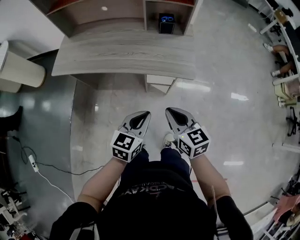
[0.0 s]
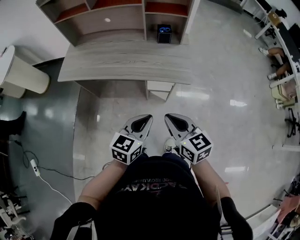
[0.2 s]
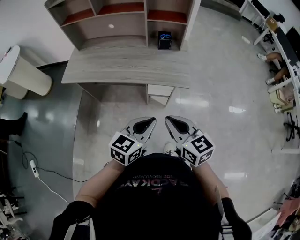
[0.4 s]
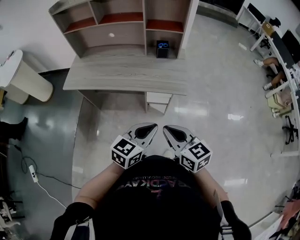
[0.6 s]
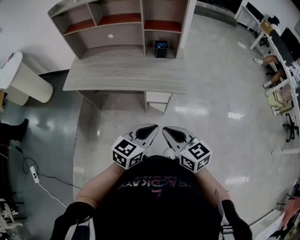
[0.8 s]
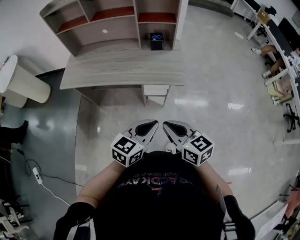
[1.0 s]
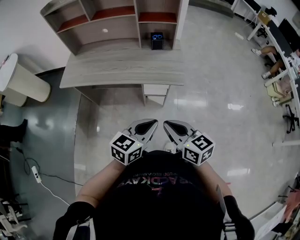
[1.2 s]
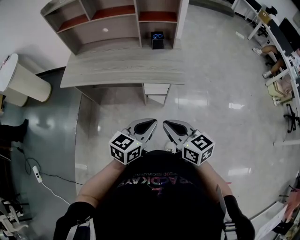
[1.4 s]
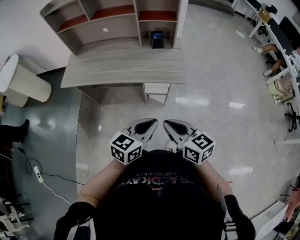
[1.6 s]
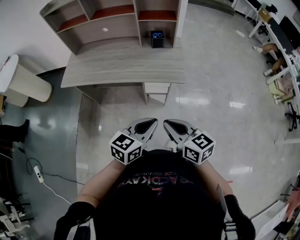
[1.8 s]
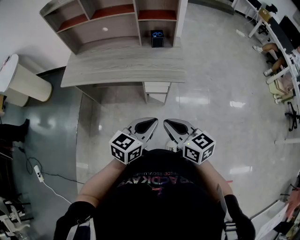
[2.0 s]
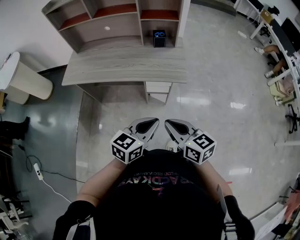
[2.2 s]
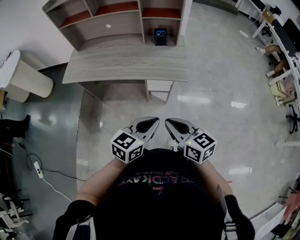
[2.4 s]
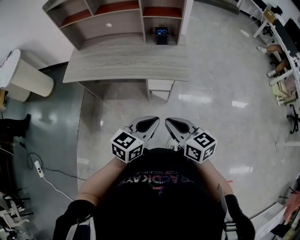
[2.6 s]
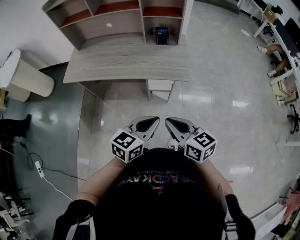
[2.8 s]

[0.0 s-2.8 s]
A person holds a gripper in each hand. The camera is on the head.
0.0 to 1.4 s: The left gripper moves upward, roughly 5 cm. Meanwhile the right gripper moves upward and backward, approximately 10 cm.
1.4 to 2.8 s: Both grippers stay put.

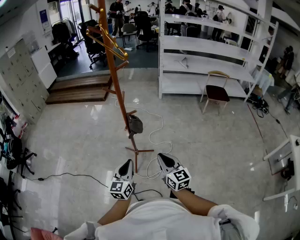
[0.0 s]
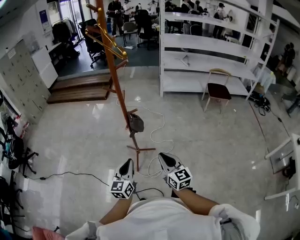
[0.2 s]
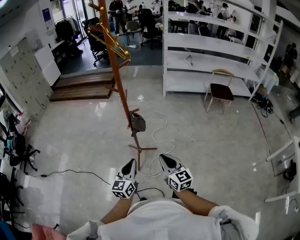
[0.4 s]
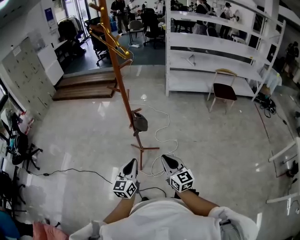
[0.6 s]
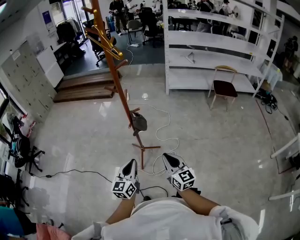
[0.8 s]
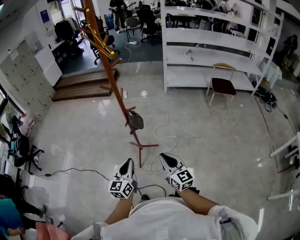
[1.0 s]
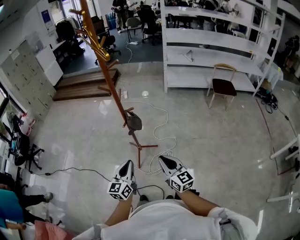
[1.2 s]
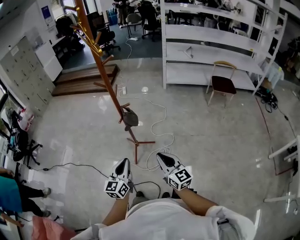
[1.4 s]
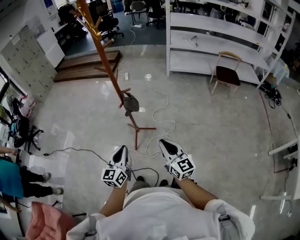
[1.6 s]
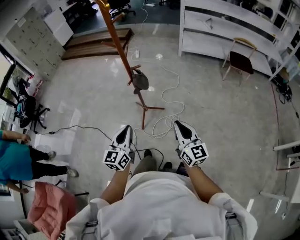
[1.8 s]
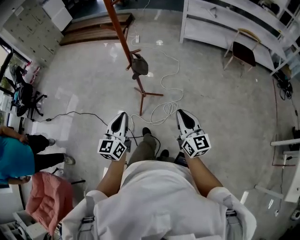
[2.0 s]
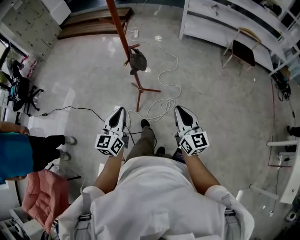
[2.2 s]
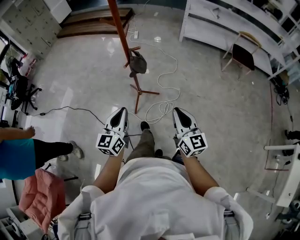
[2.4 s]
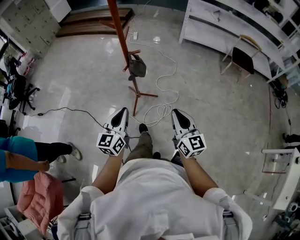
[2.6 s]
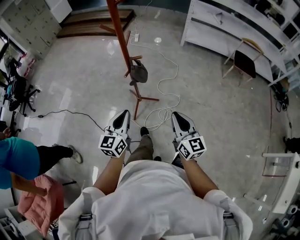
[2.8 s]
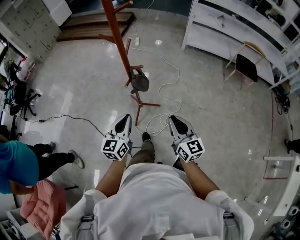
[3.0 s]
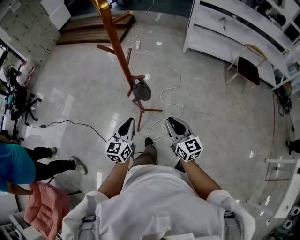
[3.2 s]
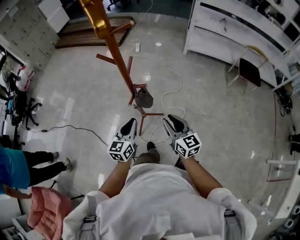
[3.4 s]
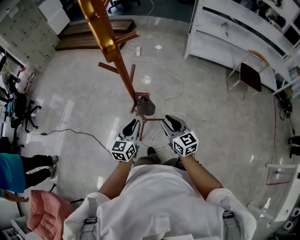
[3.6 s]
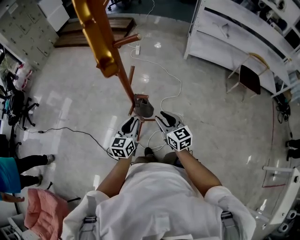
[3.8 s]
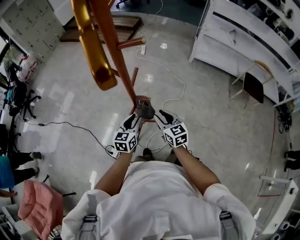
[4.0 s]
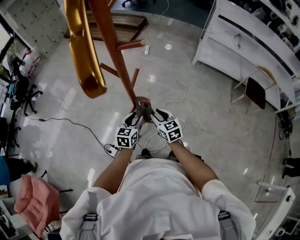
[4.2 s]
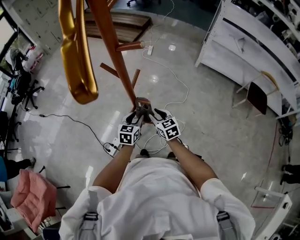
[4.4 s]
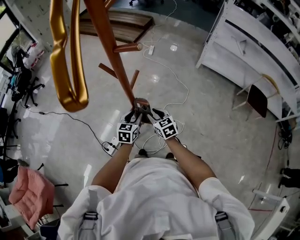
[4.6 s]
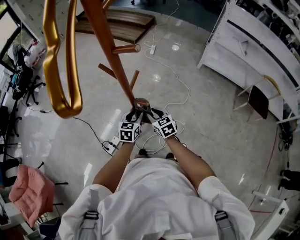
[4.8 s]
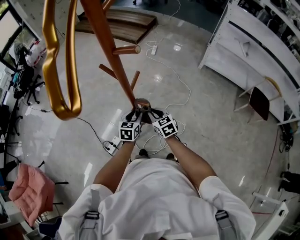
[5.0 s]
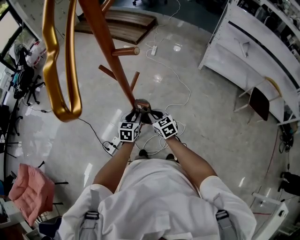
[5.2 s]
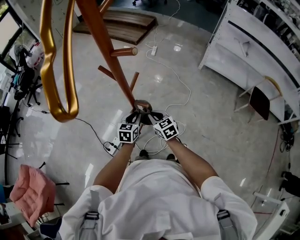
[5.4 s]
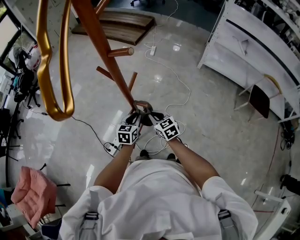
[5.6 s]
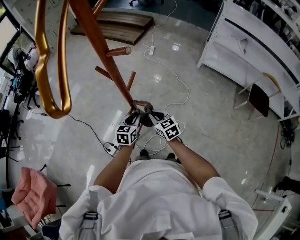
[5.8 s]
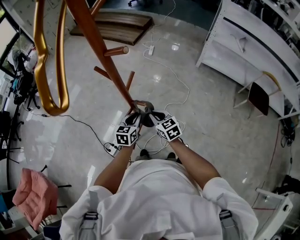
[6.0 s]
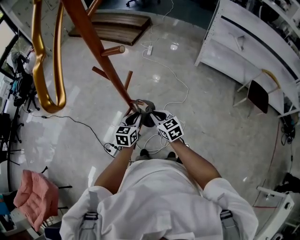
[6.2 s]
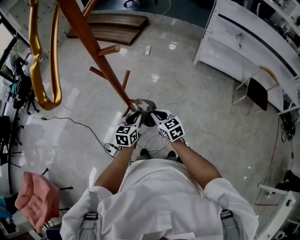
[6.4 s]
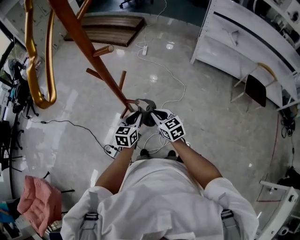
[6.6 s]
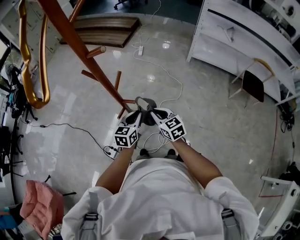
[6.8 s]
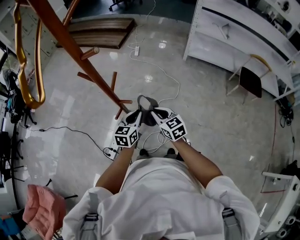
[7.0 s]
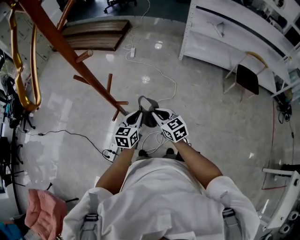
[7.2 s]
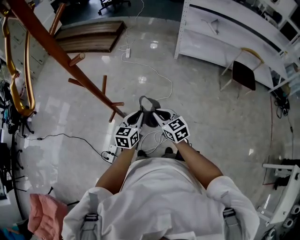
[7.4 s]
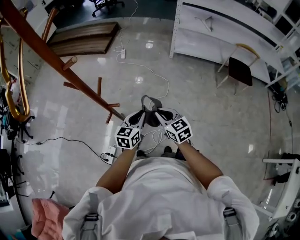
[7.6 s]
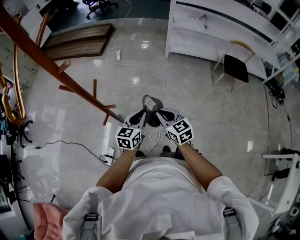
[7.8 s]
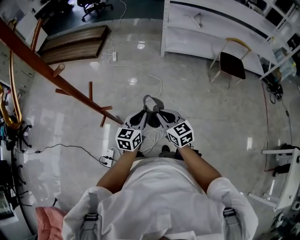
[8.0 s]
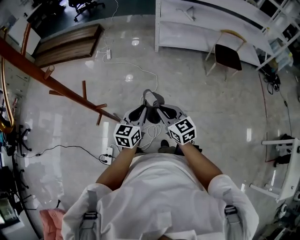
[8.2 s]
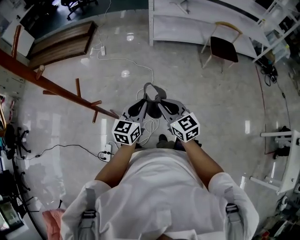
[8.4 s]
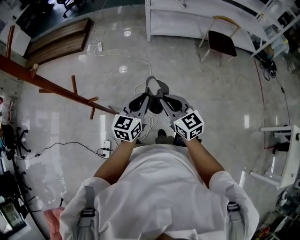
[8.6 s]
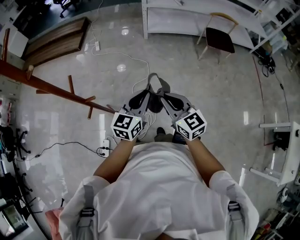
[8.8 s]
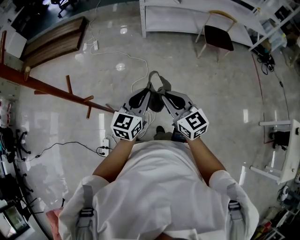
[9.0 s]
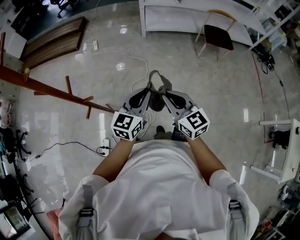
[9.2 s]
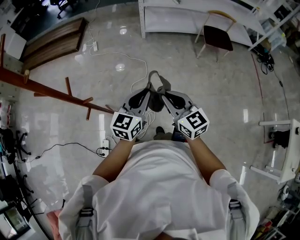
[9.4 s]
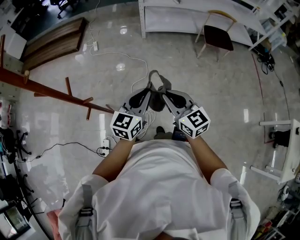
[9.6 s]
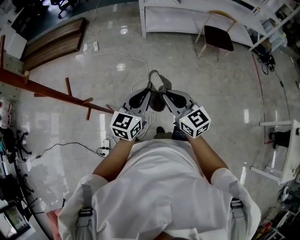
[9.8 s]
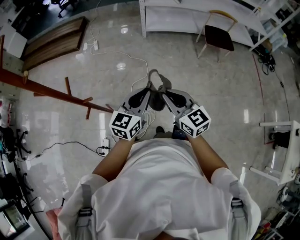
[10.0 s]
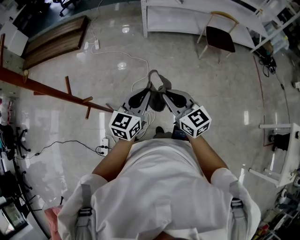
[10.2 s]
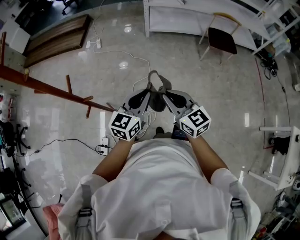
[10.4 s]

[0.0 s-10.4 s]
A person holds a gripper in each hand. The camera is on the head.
0.0 to 1.4 s: Both grippers travel together to the right, about 5 cm.
1.4 to 3.0 s: Both grippers move forward, about 15 cm.
3.0 to 4.4 s: The two grippers go roughly 30 cm forward and downward. The right gripper rotates roughly 30 degrees, and opens its fingers; the left gripper rotates about 20 degrees, and opens its fingers.
4.4 to 6.0 s: The right gripper closes up.
6.0 to 7.4 s: The left gripper travels to the right and upward by some 15 cm. Meanwhile the right gripper is displaced to the right, upward and backward by roughly 15 cm.
7.4 to 9.0 s: Both grippers travel together to the right and upward, some 20 cm. The right gripper swivels some 20 degrees, while the left gripper changes its angle by some 20 degrees.
9.0 to 10.4 s: The grippers stay close to where they were, moving slightly.

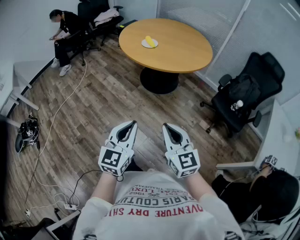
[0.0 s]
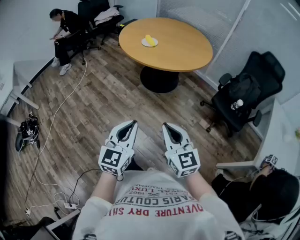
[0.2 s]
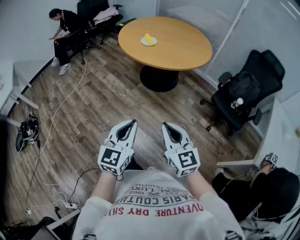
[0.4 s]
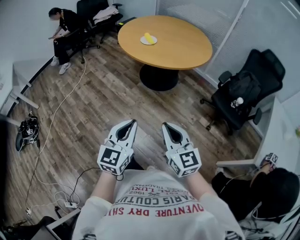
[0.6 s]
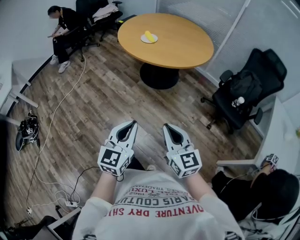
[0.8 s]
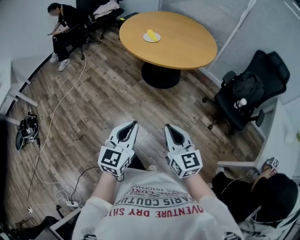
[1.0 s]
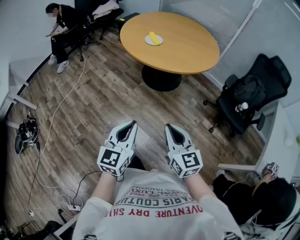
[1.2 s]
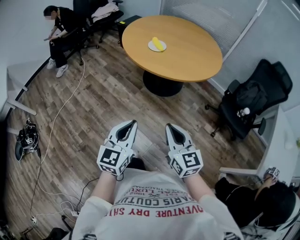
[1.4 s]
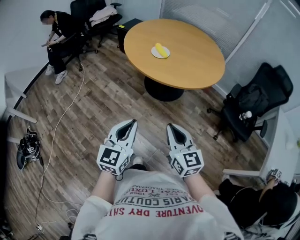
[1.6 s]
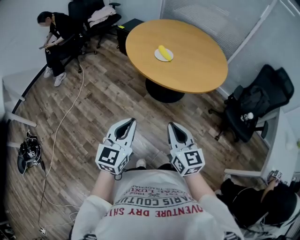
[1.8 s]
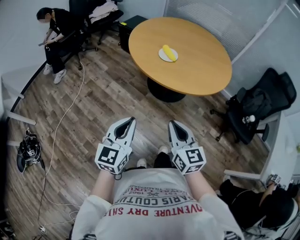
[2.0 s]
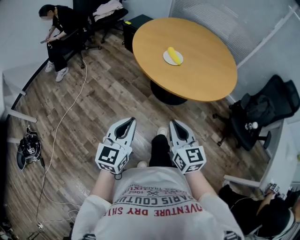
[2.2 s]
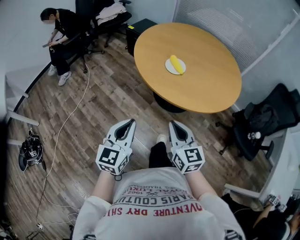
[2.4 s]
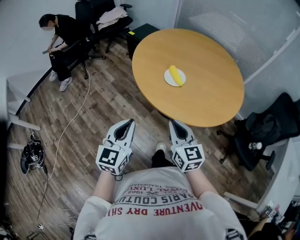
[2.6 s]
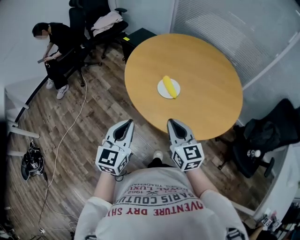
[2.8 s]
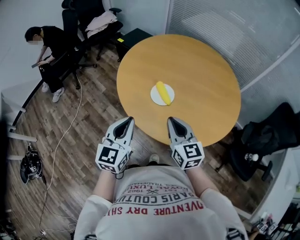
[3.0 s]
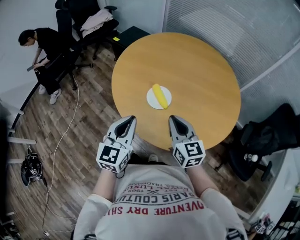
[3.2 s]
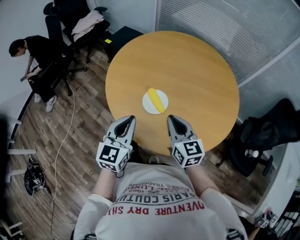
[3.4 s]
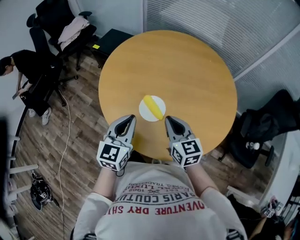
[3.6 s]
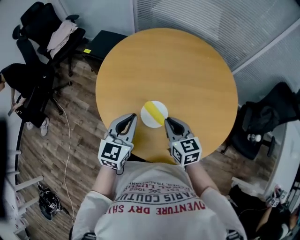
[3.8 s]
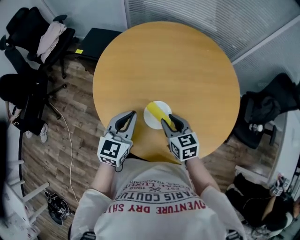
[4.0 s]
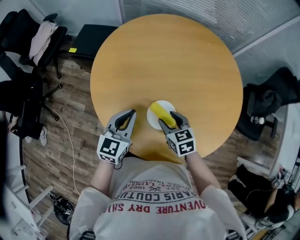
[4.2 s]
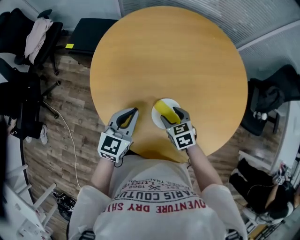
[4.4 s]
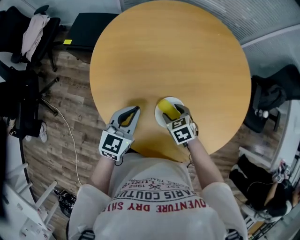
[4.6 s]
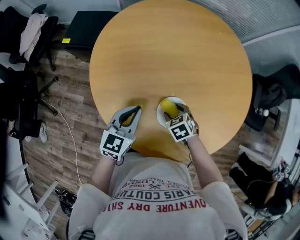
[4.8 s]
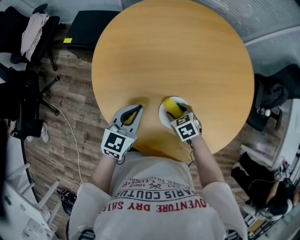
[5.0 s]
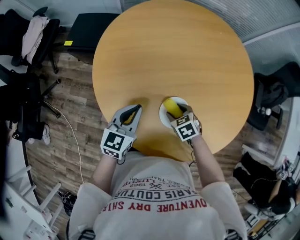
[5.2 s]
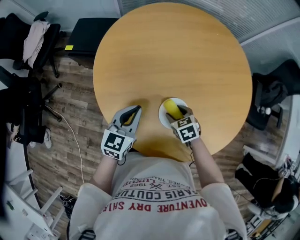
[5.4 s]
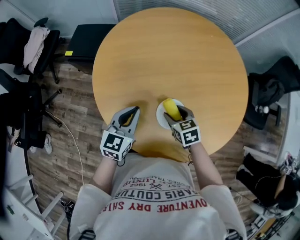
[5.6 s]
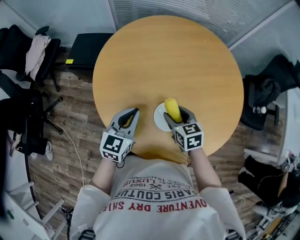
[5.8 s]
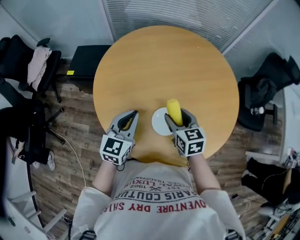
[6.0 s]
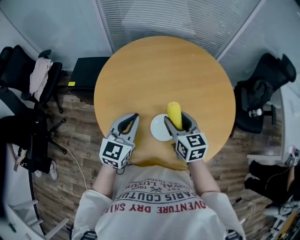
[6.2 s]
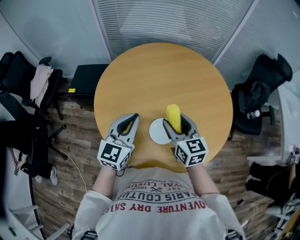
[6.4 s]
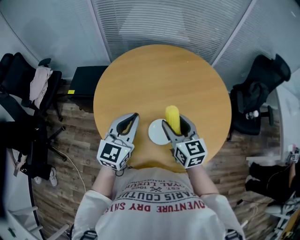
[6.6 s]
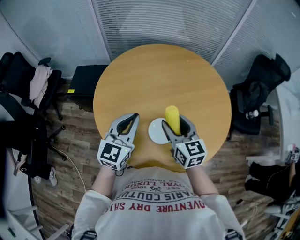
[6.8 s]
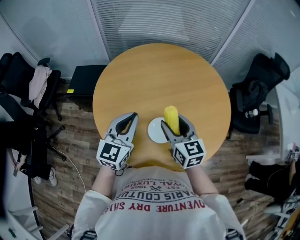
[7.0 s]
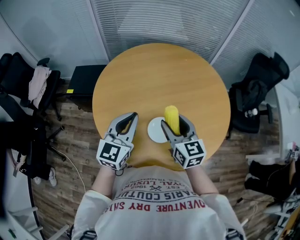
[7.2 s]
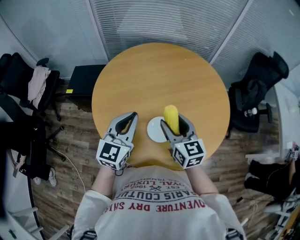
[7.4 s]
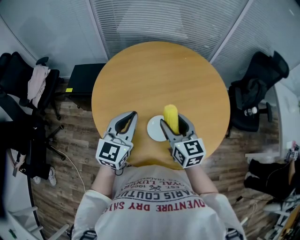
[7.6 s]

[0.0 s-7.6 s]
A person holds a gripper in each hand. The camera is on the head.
0.0 to 1.6 s: Both grippers travel together forward and to the left, roughly 25 cm.
1.6 to 3.0 s: The pair of grippers is taken forward, about 40 cm.
3.0 to 4.6 s: The left gripper shifts by roughly 35 cm, and rotates approximately 40 degrees. Meanwhile the right gripper moves downward, about 25 cm, tilts its fingers roughly 50 degrees downward, and opens up.
4.6 to 6.0 s: The left gripper heads upward, covering approximately 5 cm, while the right gripper shifts approximately 15 cm upward, and turns by about 40 degrees.
6.0 to 7.6 s: Both grippers travel together upward, about 10 cm.

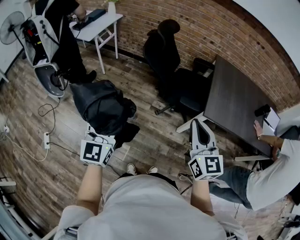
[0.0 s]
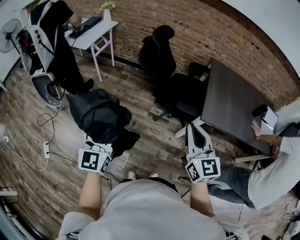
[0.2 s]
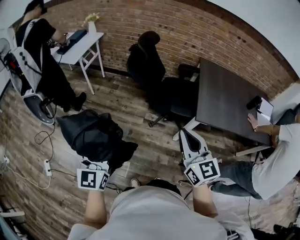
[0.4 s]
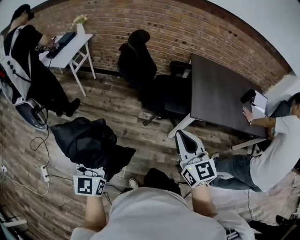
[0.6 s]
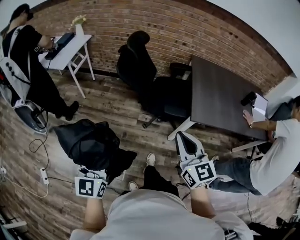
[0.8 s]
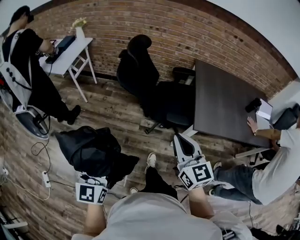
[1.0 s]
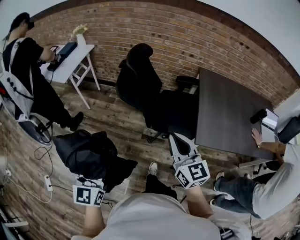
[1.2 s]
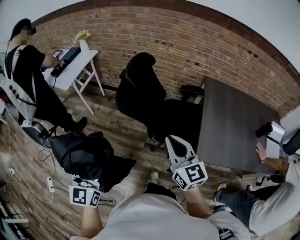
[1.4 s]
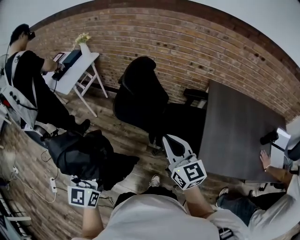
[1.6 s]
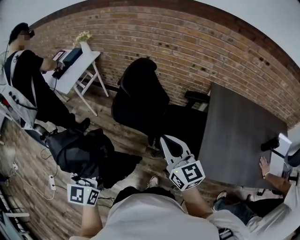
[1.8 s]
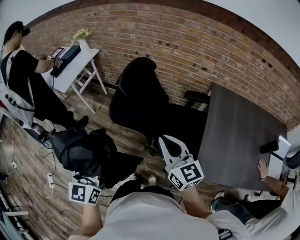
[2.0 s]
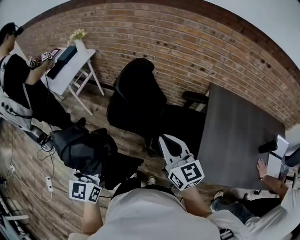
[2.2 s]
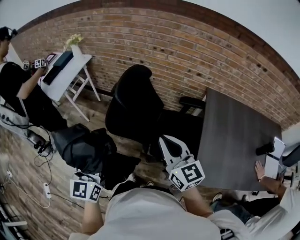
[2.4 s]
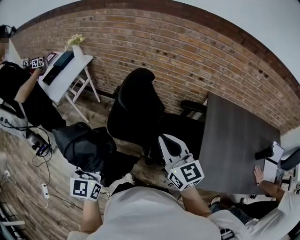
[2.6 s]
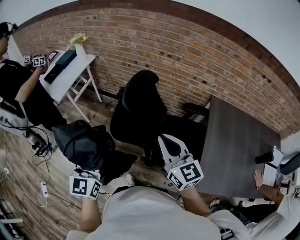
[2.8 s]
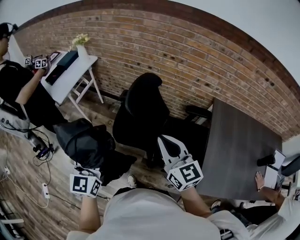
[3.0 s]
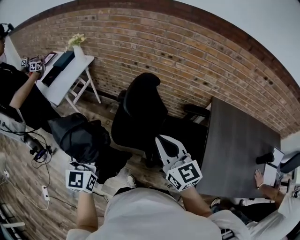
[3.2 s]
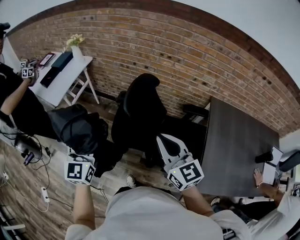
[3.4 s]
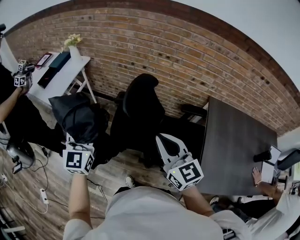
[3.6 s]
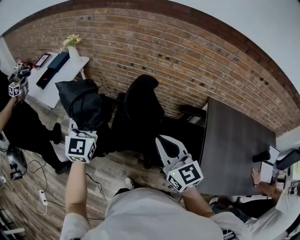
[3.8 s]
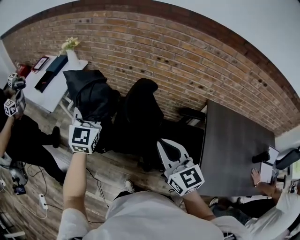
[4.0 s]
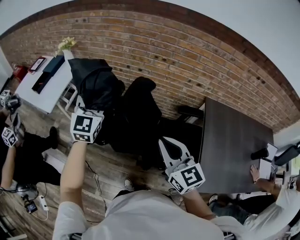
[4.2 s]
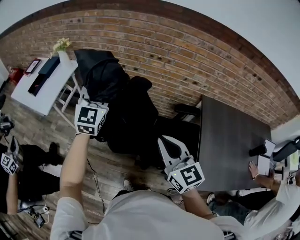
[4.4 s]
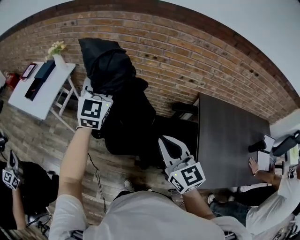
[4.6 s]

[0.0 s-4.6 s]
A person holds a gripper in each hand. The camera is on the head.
0.0 to 1.6 s: The two grippers go about 25 cm forward.
1.6 to 3.0 s: Both grippers travel together forward, some 20 cm.
3.0 to 4.6 s: The left gripper heads forward, to the right and upward, covering some 30 cm, and turns by approximately 30 degrees.
